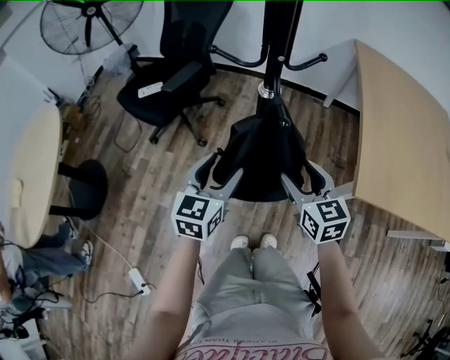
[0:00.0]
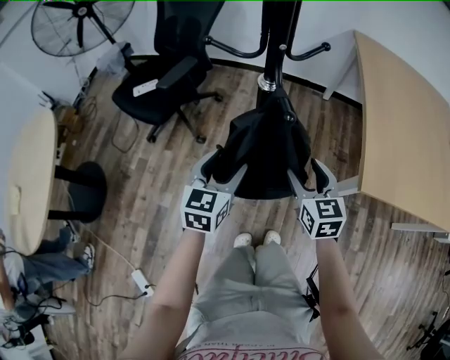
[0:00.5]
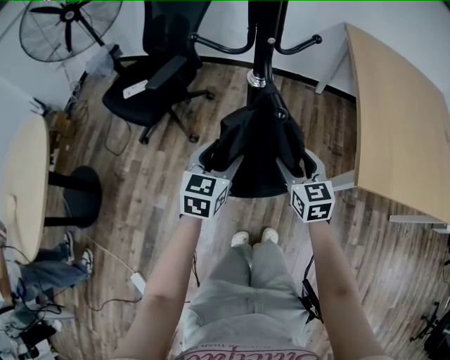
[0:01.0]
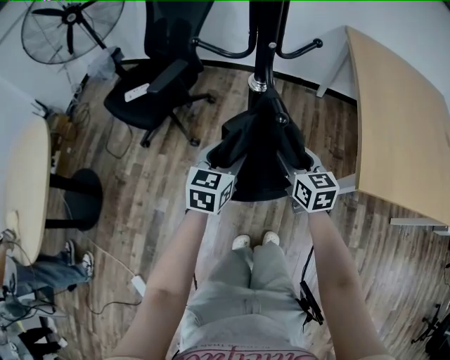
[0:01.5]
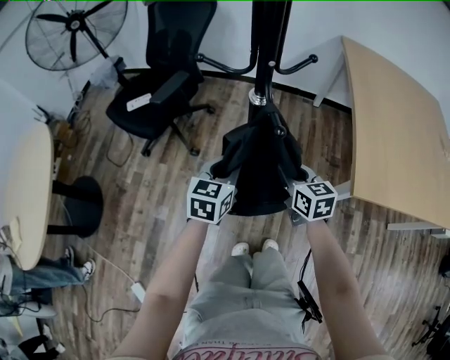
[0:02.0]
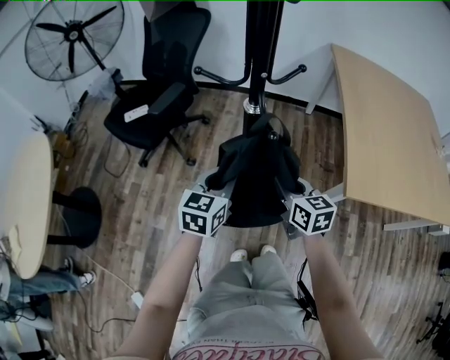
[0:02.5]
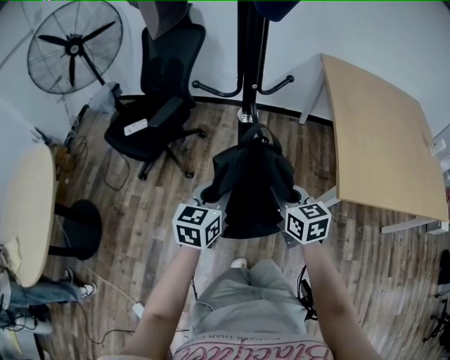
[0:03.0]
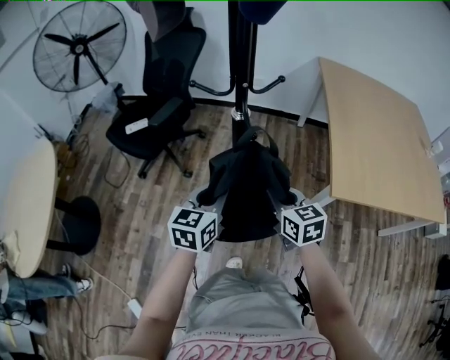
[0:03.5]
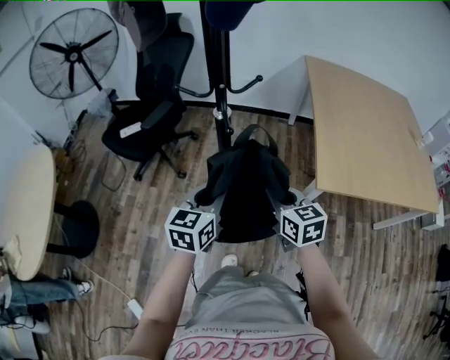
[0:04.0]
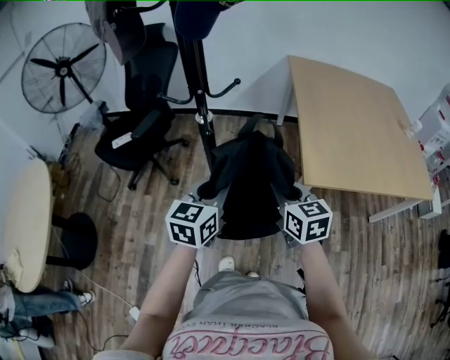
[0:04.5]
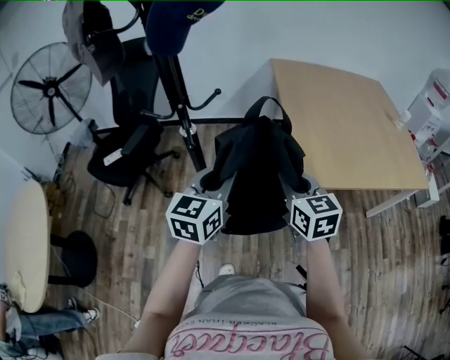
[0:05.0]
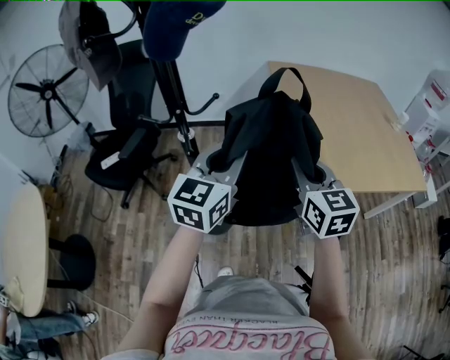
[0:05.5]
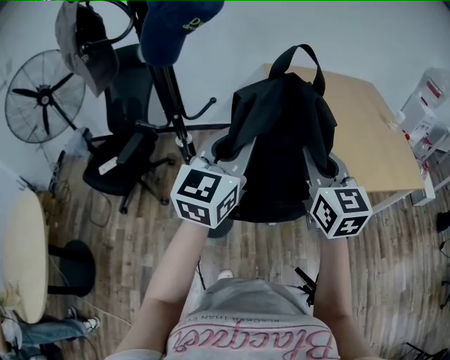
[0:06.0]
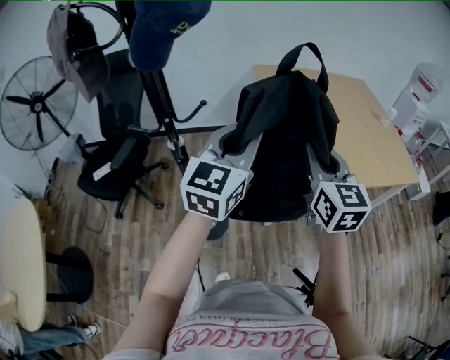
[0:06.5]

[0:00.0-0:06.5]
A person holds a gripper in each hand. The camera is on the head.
0:00.0 to 0:02.0: The right gripper moves downward and forward, roughly 10 cm, and closes its fingers; the left gripper moves forward and downward, about 10 cm, and closes.
0:02.0 to 0:04.5: The two grippers go approximately 20 cm upward, backward and to the right.
0:04.5 to 0:06.5: The left gripper moves upward, to the right and forward, approximately 25 cm, and rotates about 30 degrees. Meanwhile the right gripper shifts some 20 cm upward and to the right, and rotates approximately 30 degrees.

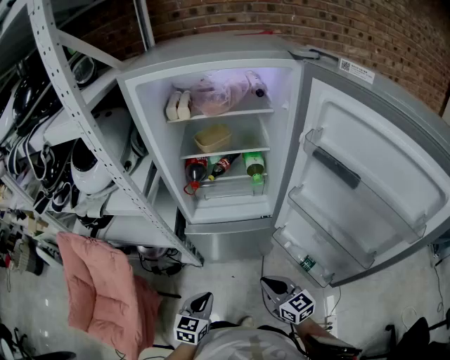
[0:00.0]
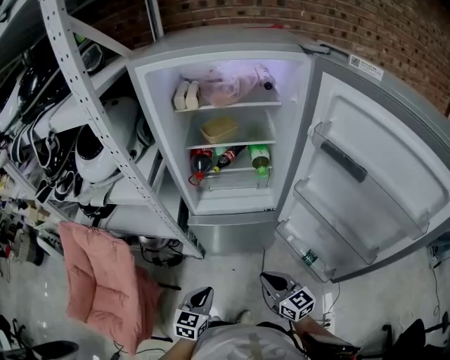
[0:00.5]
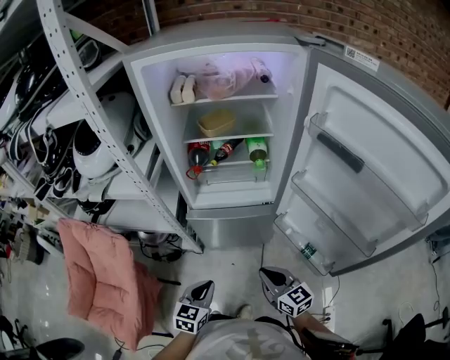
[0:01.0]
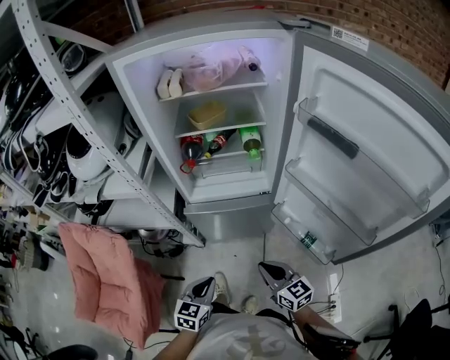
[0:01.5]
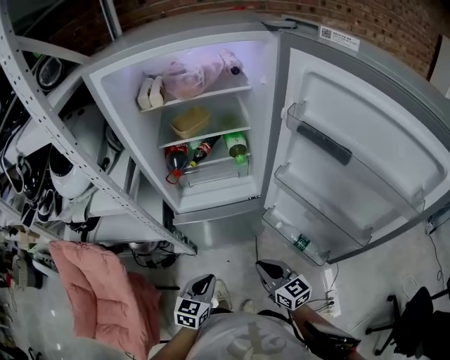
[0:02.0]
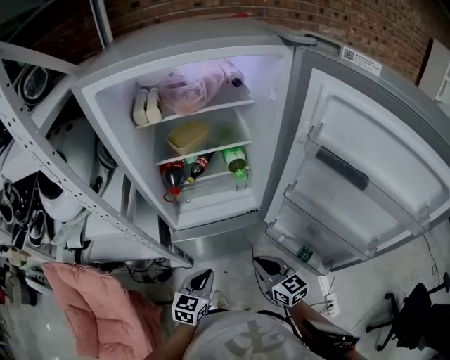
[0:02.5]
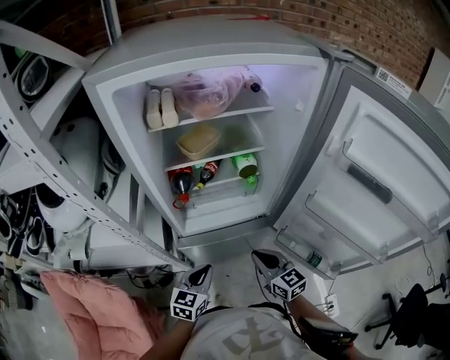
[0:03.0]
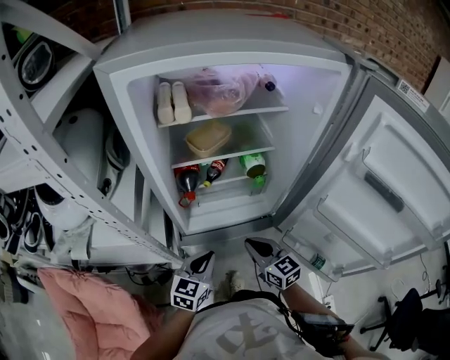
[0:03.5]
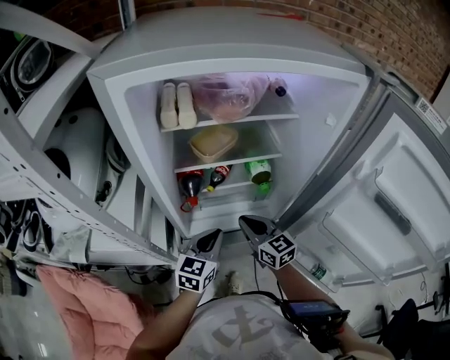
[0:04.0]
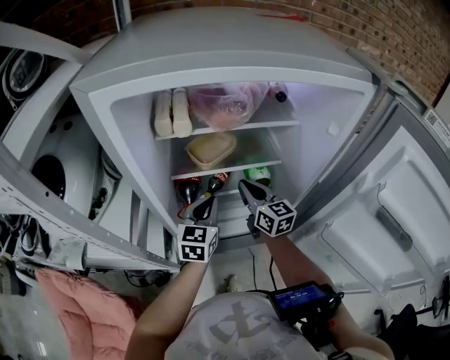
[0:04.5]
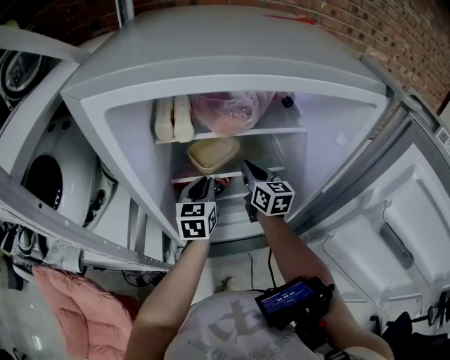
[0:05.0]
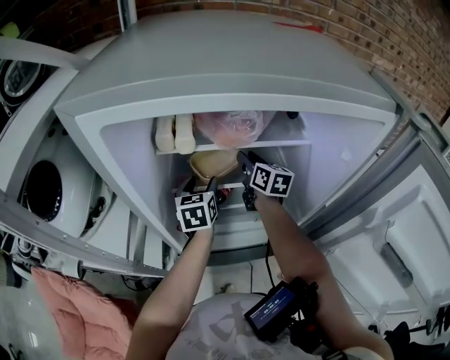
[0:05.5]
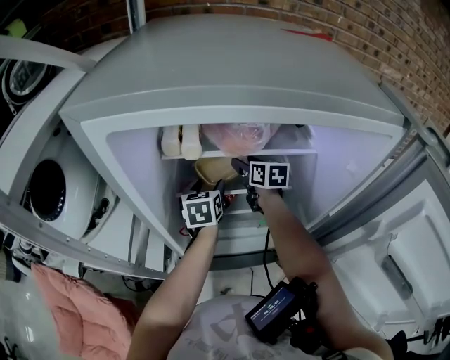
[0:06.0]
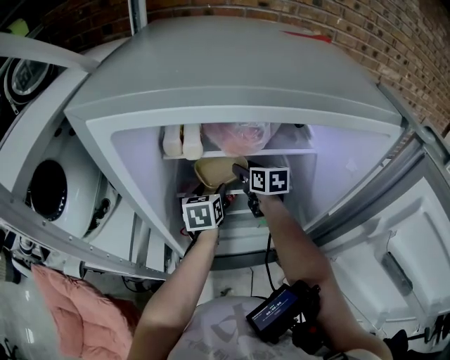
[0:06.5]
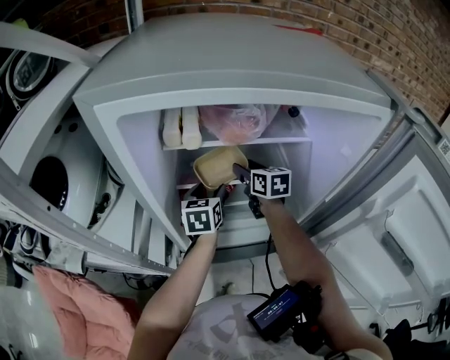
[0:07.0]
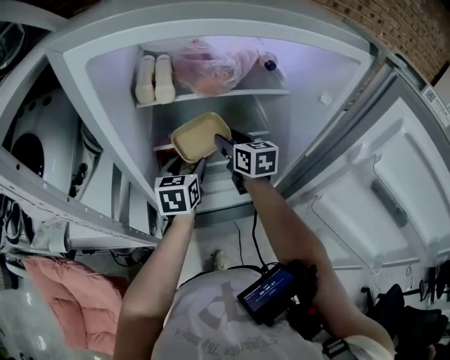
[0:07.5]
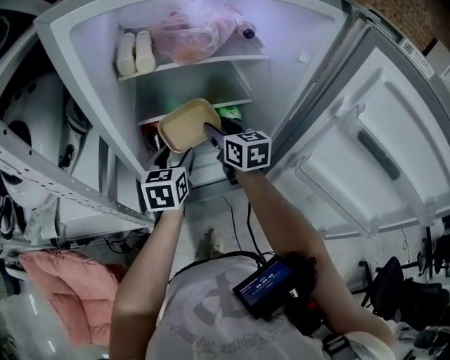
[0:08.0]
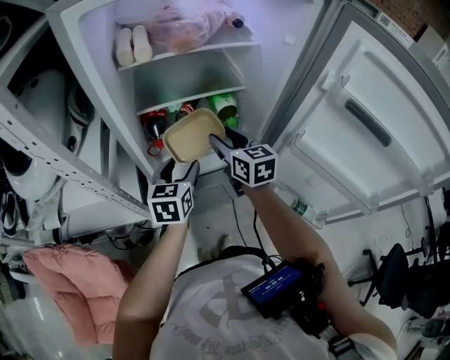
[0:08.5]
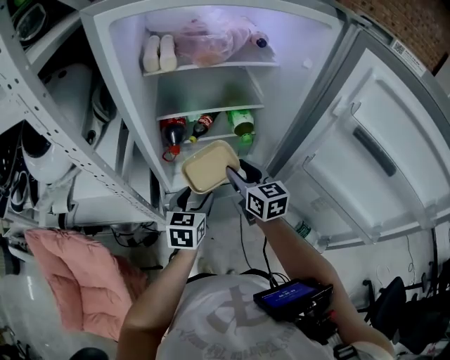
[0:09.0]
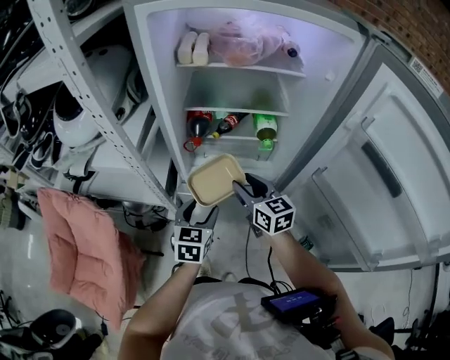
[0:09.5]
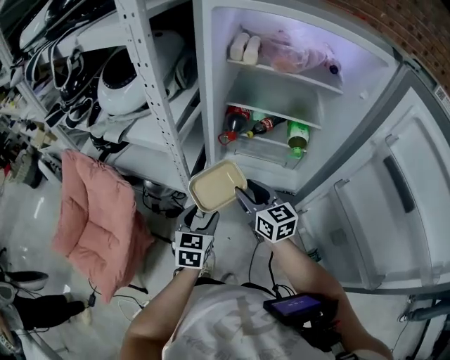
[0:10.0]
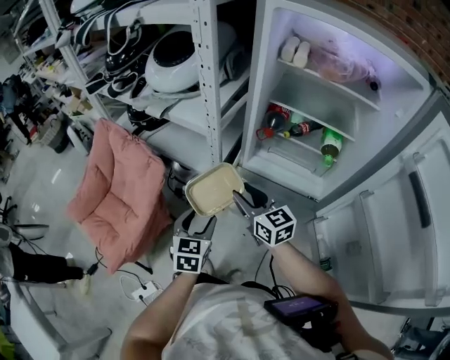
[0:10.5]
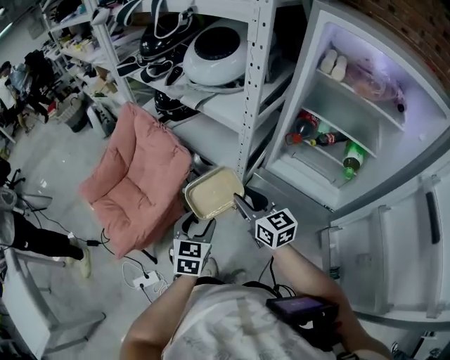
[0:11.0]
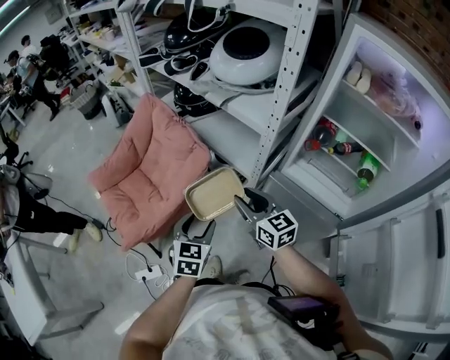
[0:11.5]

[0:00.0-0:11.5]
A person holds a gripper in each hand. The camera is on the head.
0:00.0 to 0:02.0: There are only small adjustments of the grippers.
0:02.0 to 0:04.0: The left gripper travels forward by about 30 cm, while the right gripper shifts some 35 cm forward and to the left.
0:04.0 to 0:06.0: The two grippers go roughly 30 cm forward. The right gripper opens up; the left gripper changes its angle by approximately 30 degrees, and opens.
0:06.0 to 0:07.5: The grippers both shift backward by some 10 cm.
0:07.5 to 0:09.5: The grippers both shift backward by approximately 25 cm.
0:09.5 to 0:11.5: The right gripper shifts by roughly 35 cm, and swivels some 40 degrees; the left gripper shifts by some 35 cm, and swivels approximately 40 degrees.

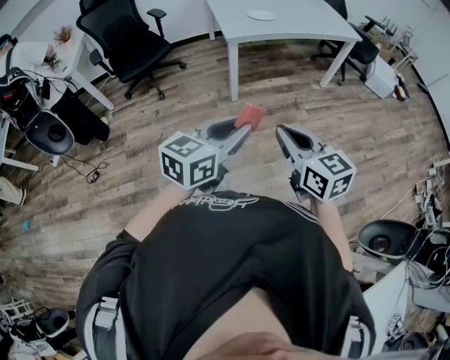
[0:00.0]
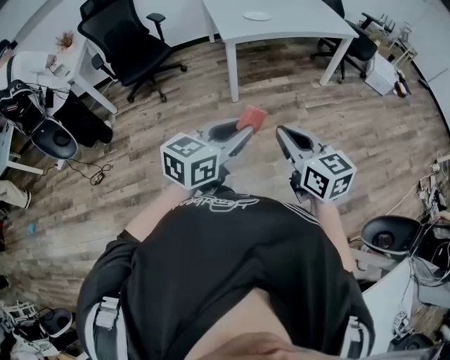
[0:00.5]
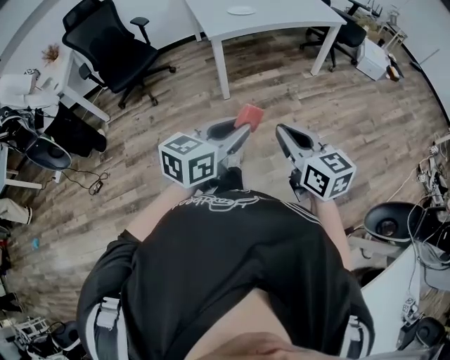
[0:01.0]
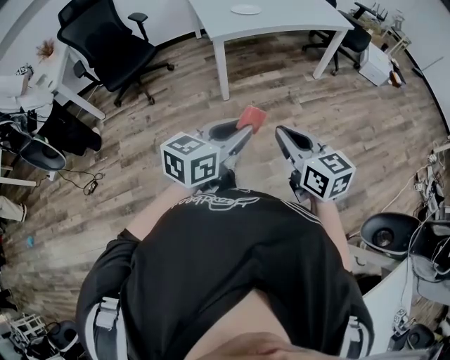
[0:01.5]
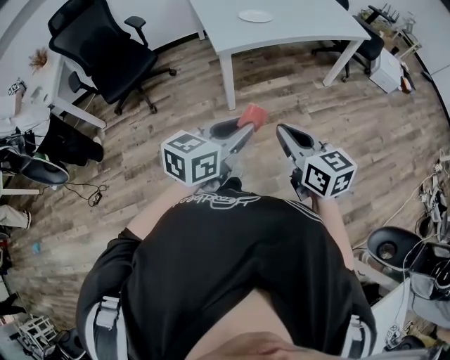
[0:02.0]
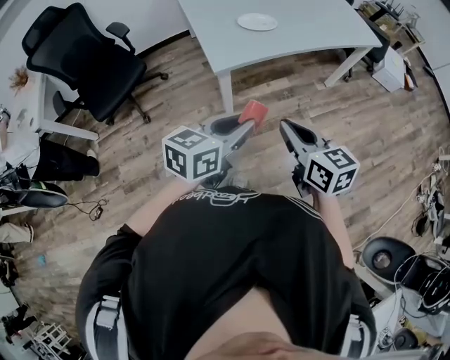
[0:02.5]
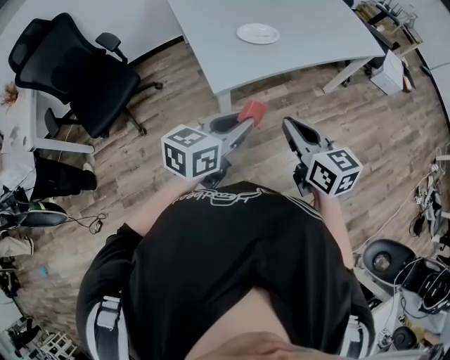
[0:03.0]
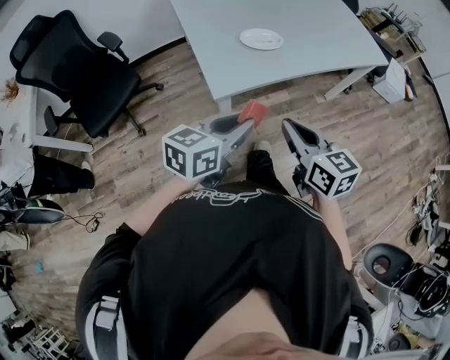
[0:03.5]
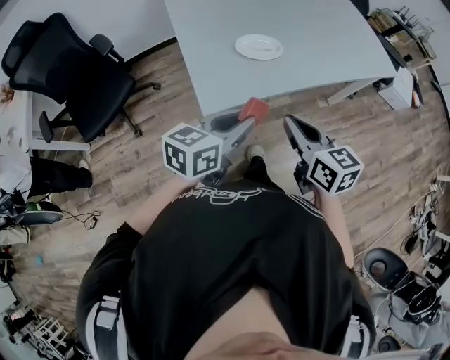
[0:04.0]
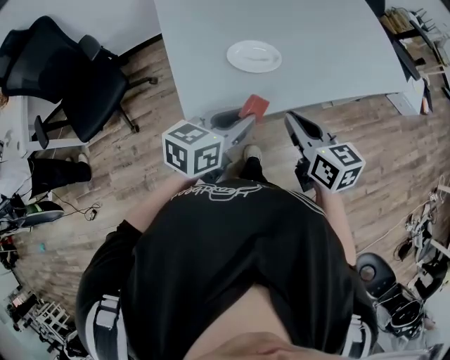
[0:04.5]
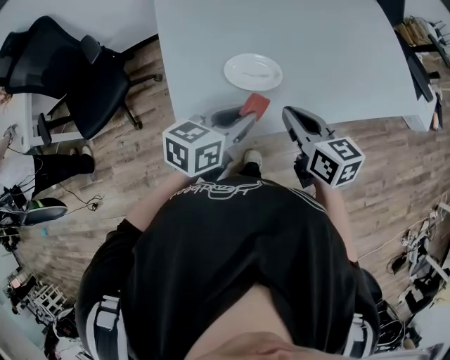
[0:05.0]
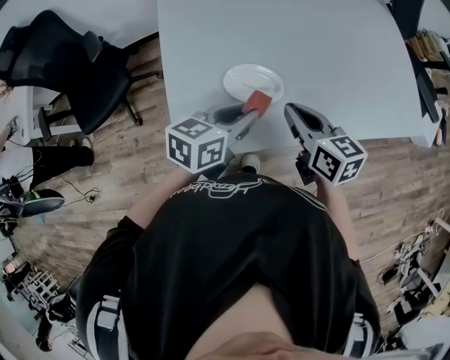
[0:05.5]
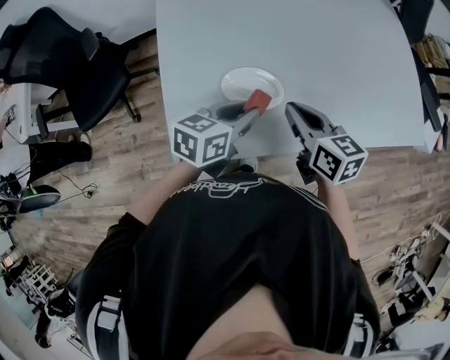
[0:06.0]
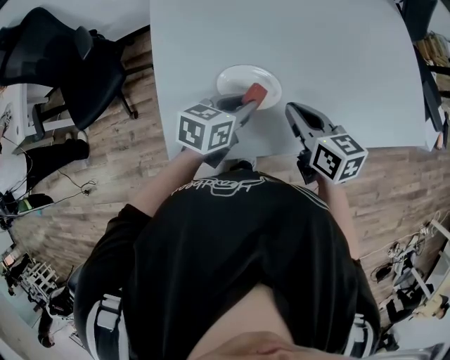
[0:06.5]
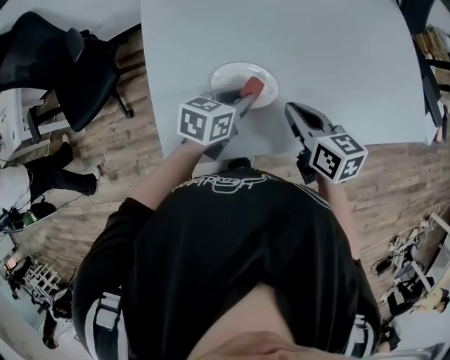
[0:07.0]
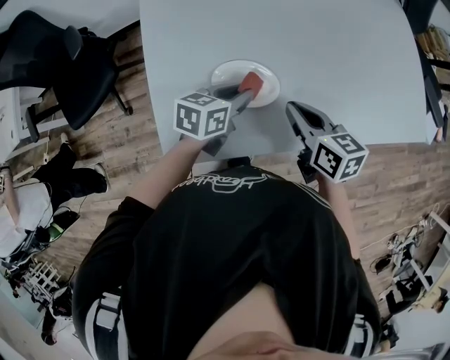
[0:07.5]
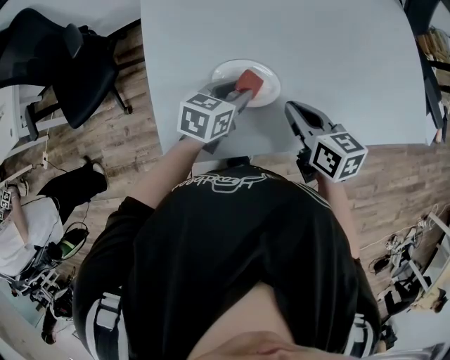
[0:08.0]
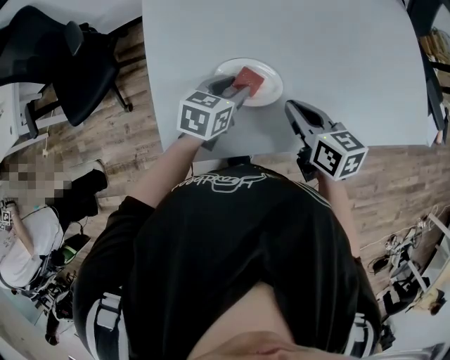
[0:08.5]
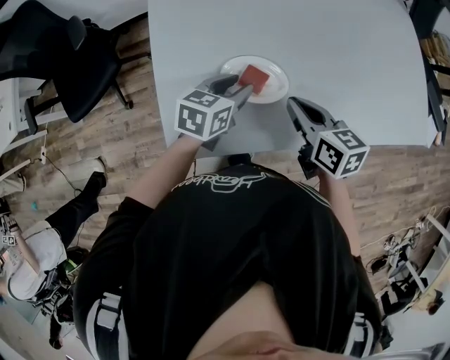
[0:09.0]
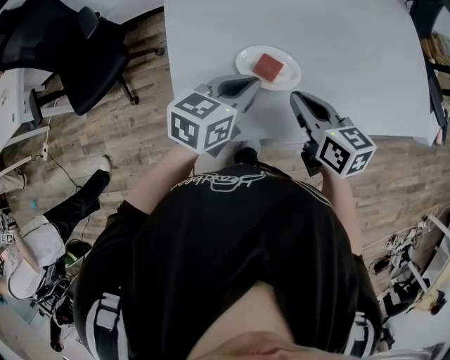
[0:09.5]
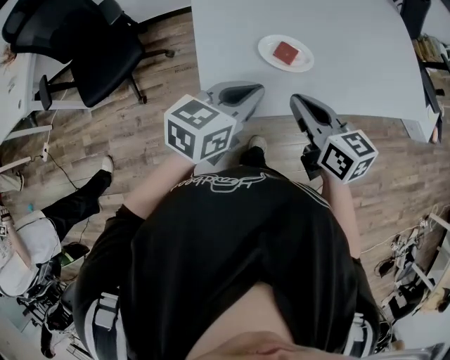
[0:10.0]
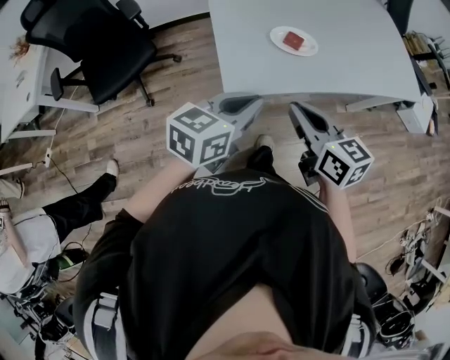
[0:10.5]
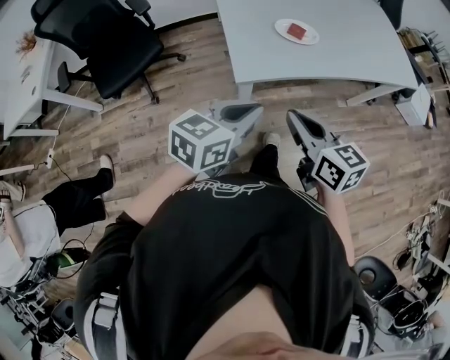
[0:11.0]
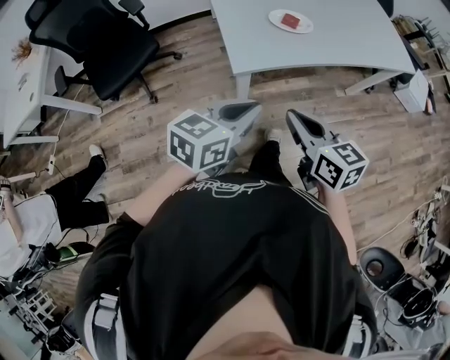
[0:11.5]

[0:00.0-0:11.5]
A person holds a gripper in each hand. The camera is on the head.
0:00.0 to 0:02.0: Both grippers travel together forward, some 20 cm.
0:02.0 to 0:04.0: Both grippers are carried forward, roughly 40 cm.
0:04.0 to 0:06.0: The grippers both shift forward by approximately 30 cm.
0:06.0 to 0:07.5: The left gripper is displaced downward by approximately 5 cm.
0:07.5 to 0:09.5: The right gripper moves to the left, some 5 cm. The left gripper heads upward, covering roughly 10 cm.
0:09.5 to 0:11.5: Both grippers move backward, about 35 cm.
